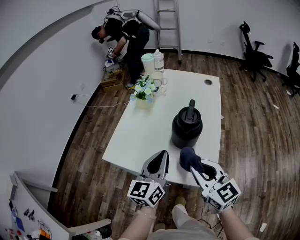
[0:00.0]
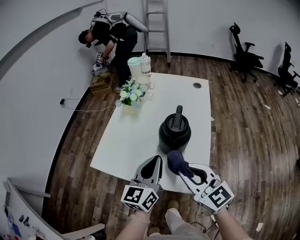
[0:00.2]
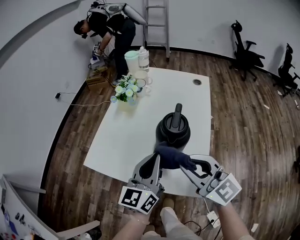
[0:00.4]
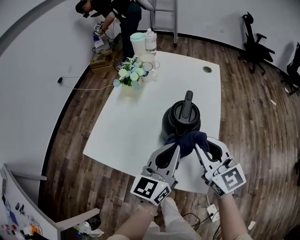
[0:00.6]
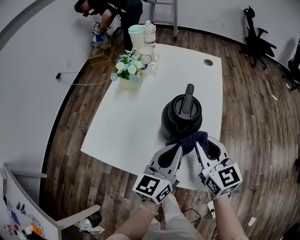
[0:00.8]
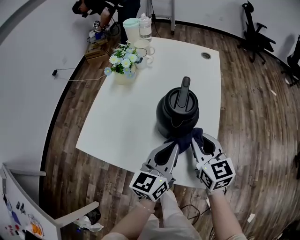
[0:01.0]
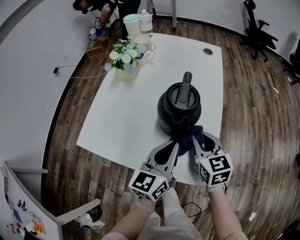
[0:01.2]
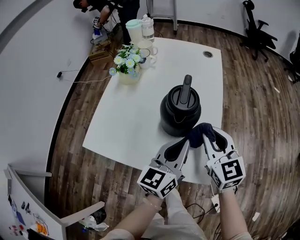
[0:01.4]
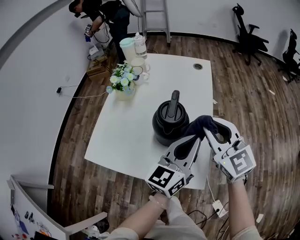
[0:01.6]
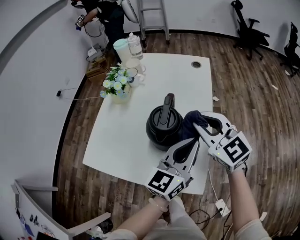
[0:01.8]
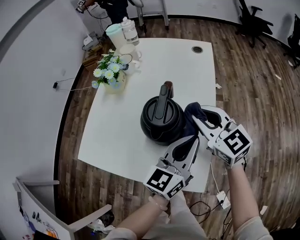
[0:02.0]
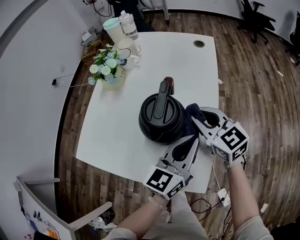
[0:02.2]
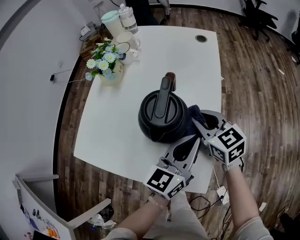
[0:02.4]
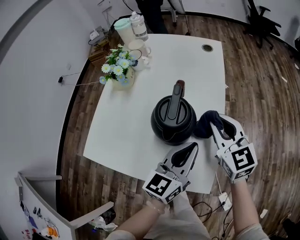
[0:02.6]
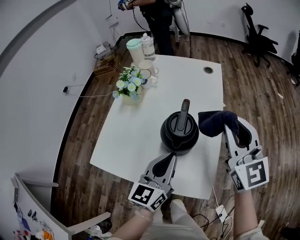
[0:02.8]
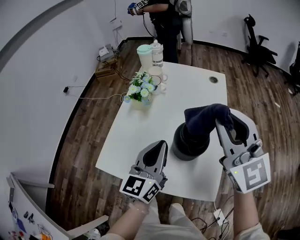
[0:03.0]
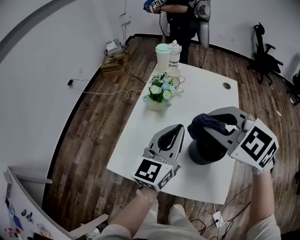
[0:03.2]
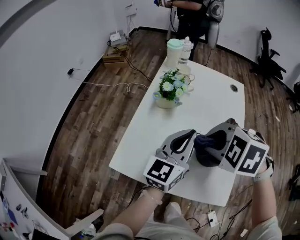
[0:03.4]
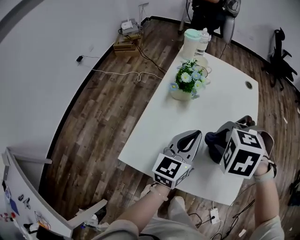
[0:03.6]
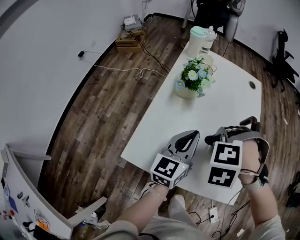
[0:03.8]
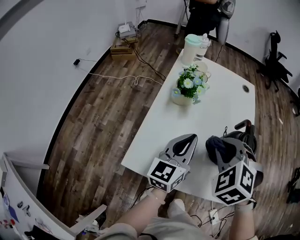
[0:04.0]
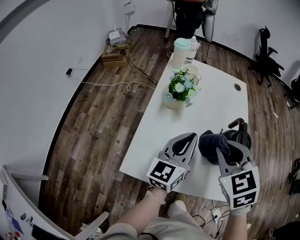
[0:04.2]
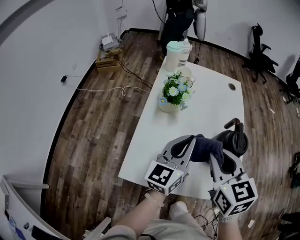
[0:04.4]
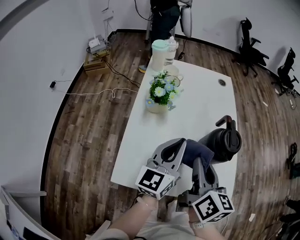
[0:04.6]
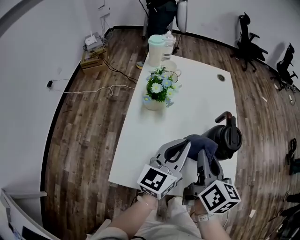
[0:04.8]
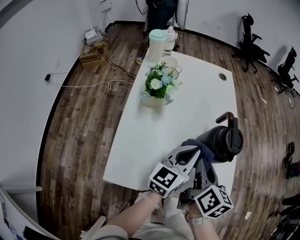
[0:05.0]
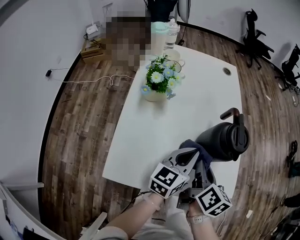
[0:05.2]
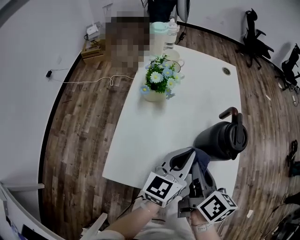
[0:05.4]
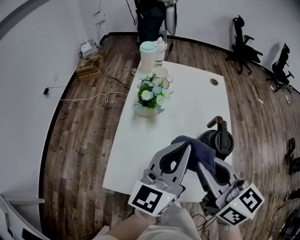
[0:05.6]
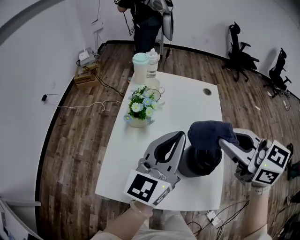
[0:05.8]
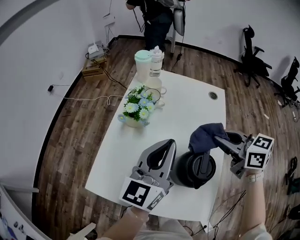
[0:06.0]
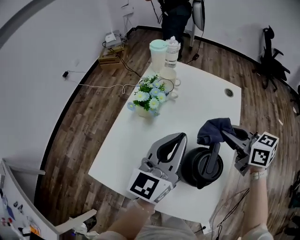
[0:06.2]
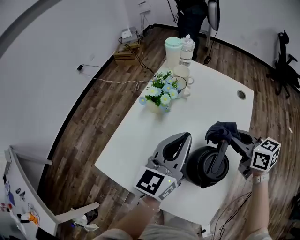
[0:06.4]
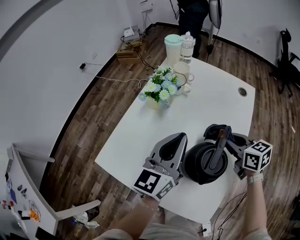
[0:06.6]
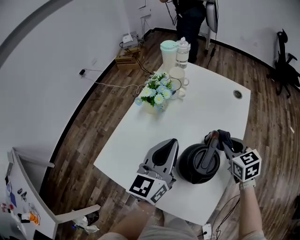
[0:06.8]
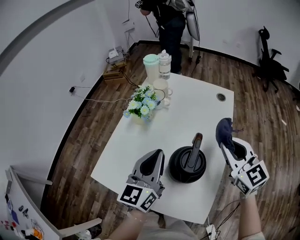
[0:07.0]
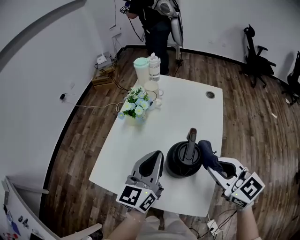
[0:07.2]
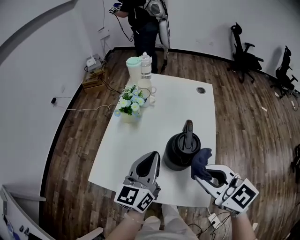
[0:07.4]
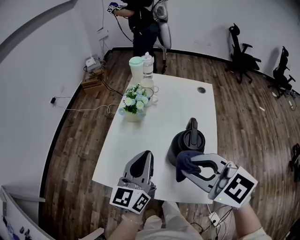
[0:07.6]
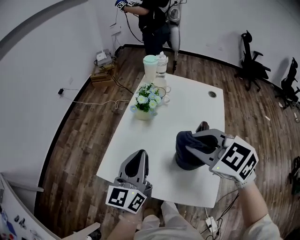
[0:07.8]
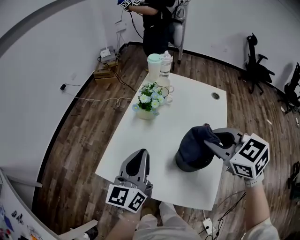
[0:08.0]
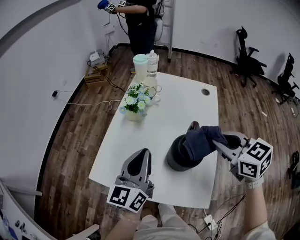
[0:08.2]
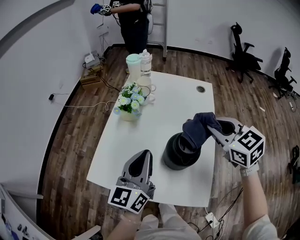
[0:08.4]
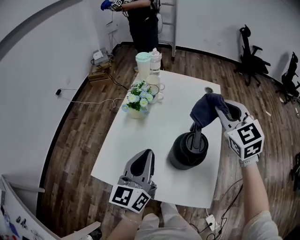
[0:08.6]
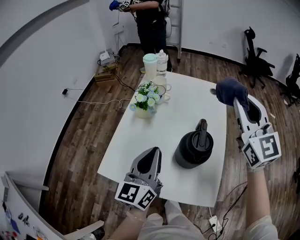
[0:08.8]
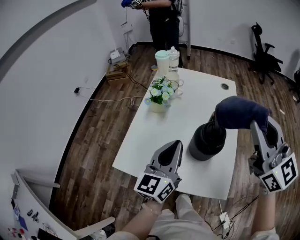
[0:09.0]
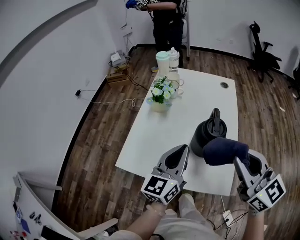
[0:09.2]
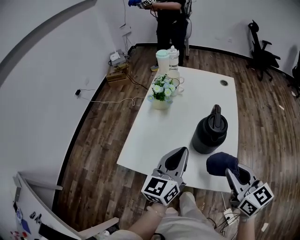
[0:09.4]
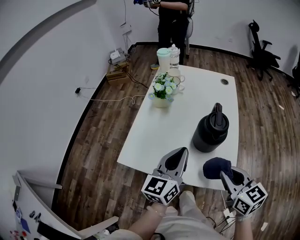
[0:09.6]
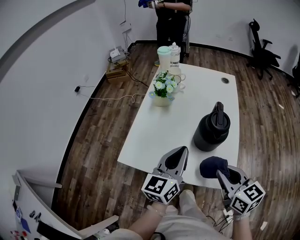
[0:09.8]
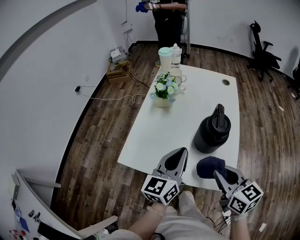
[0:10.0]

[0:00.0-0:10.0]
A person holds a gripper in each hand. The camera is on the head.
0:00.0 to 0:01.4: The left gripper travels to the right by approximately 10 cm, while the right gripper goes up and down, some 15 cm each way, reversing 2 times.
0:01.4 to 0:02.8: The left gripper travels to the left by approximately 5 cm; the right gripper moves up and down over approximately 25 cm, changing direction 2 times.
0:02.8 to 0:04.2: The left gripper swings up and down, approximately 10 cm each way, with 2 reversals; the right gripper swings up and down, roughly 20 cm each way, with 2 reversals, and points its fingers approximately 40 degrees further downward.
0:04.2 to 0:05.8: The right gripper shifts by about 15 cm, and turns by some 40 degrees. The left gripper shifts some 10 cm upward.
0:05.8 to 0:07.2: The right gripper goes about 15 cm downward, backward and to the right. The left gripper goes some 10 cm downward.
0:07.2 to 0:08.6: The right gripper goes approximately 15 cm forward and upward, and swivels about 30 degrees. Meanwhile the left gripper heads to the left, covering some 5 cm.
0:08.6 to 0:10.0: The left gripper shifts roughly 5 cm backward, while the right gripper shifts roughly 30 cm backward and downward, and turns by about 40 degrees.

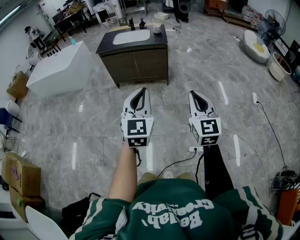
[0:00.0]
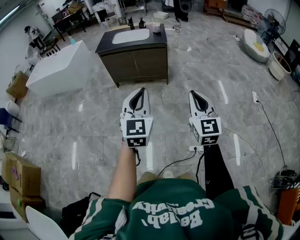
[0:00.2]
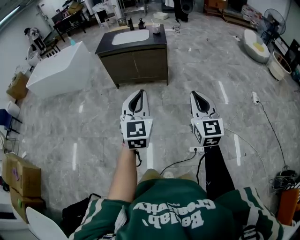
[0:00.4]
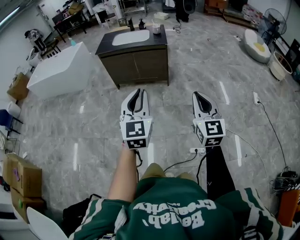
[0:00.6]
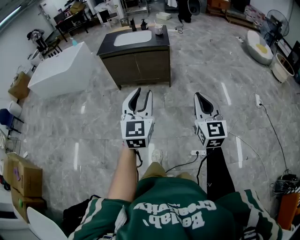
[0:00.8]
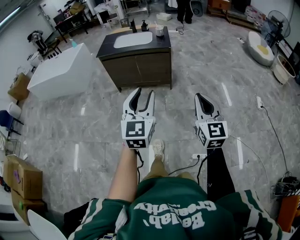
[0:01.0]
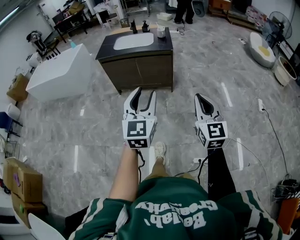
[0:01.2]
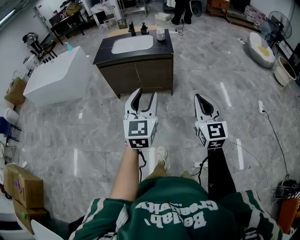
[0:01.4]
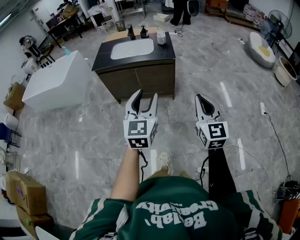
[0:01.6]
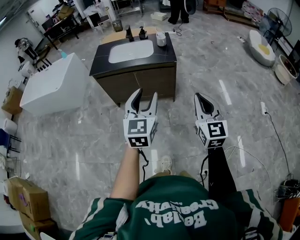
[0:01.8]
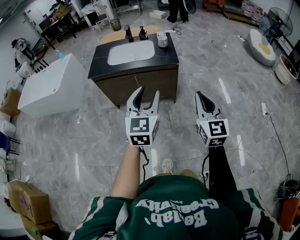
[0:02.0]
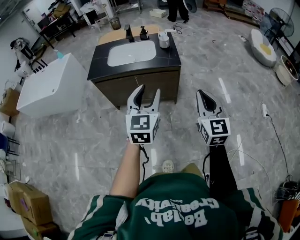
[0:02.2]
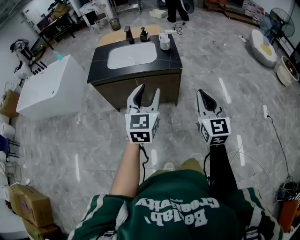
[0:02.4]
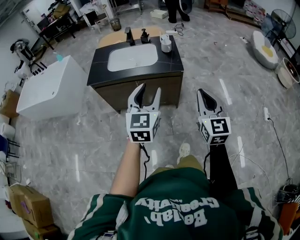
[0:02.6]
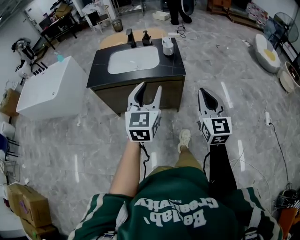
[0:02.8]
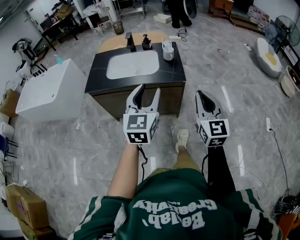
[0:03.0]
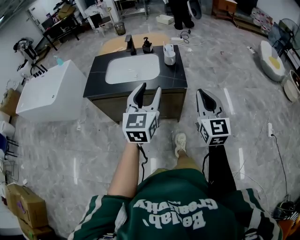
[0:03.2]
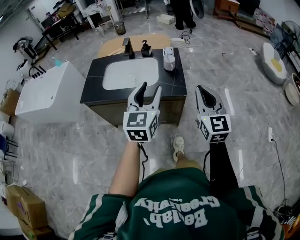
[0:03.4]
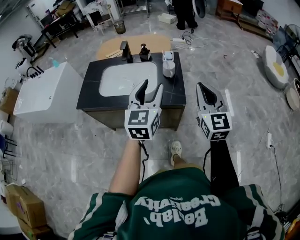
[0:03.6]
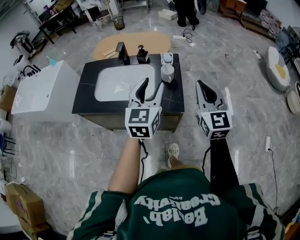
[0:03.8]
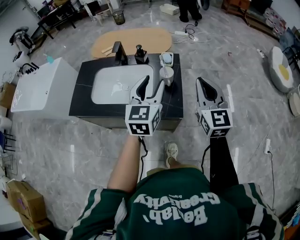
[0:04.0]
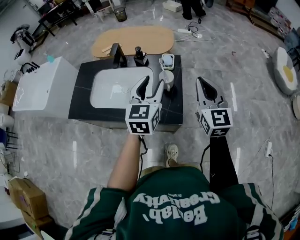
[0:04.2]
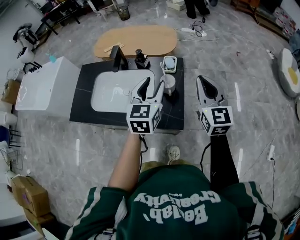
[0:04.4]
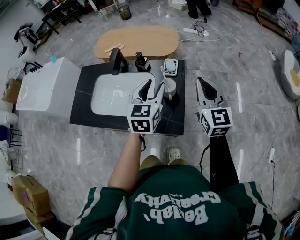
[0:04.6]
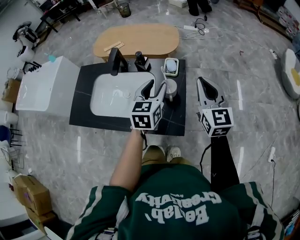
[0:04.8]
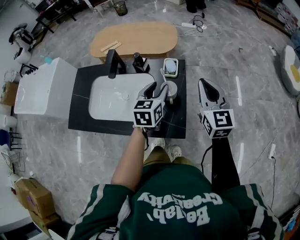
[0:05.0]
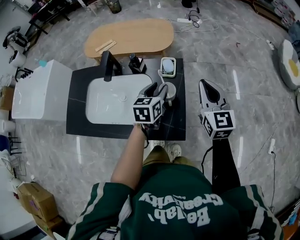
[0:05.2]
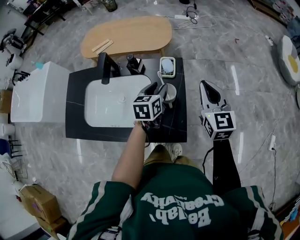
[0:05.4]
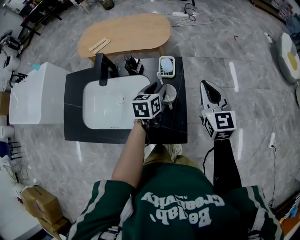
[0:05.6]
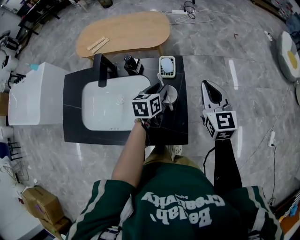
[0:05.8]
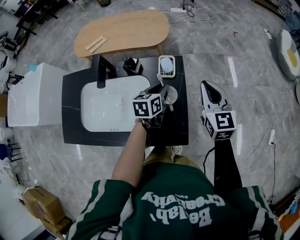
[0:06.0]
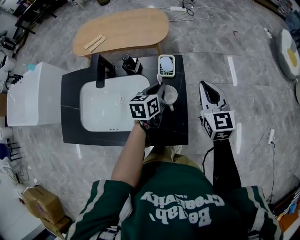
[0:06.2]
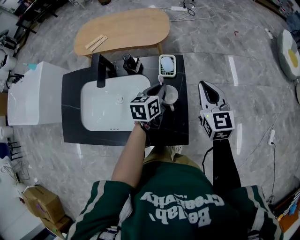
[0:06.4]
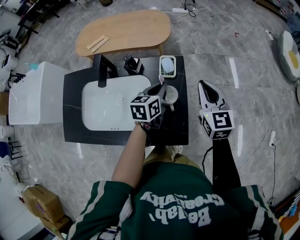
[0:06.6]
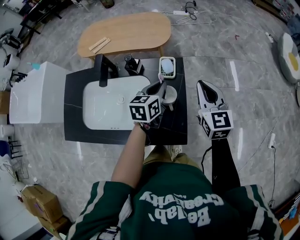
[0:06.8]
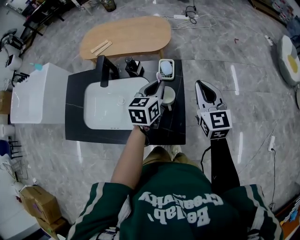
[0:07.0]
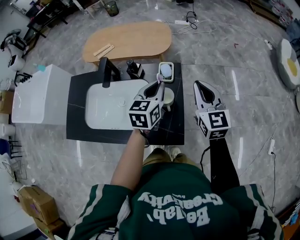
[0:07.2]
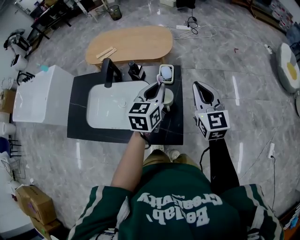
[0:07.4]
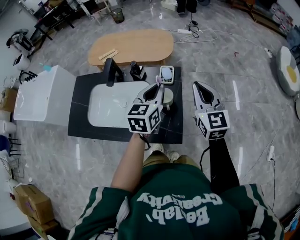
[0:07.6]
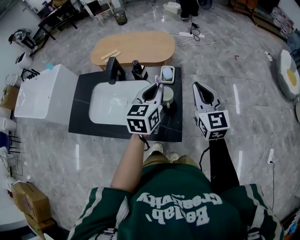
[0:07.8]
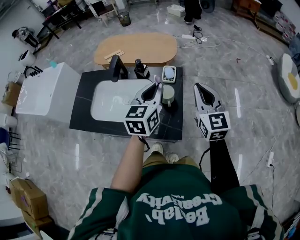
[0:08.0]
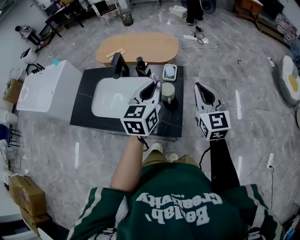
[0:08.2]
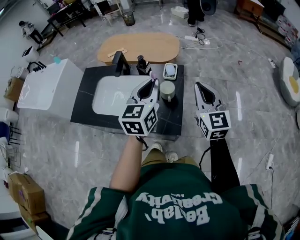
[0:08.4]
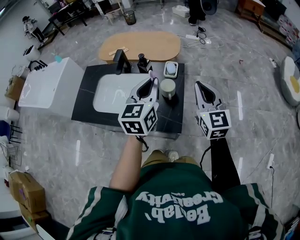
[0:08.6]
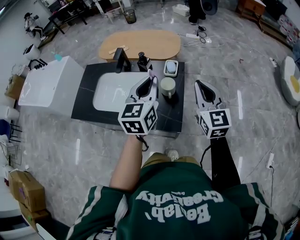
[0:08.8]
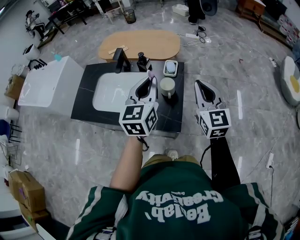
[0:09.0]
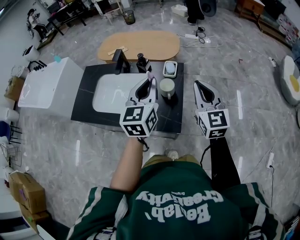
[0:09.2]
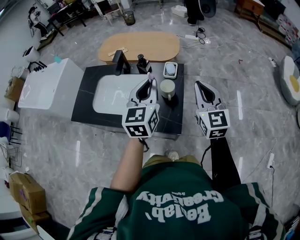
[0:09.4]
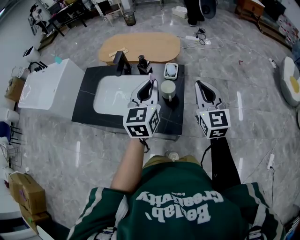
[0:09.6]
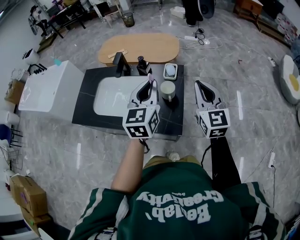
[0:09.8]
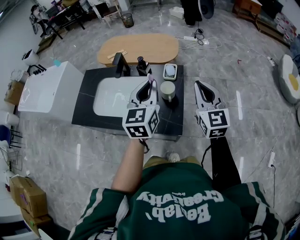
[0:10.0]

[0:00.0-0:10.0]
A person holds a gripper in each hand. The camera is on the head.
0:00.0 to 0:01.4: Both grippers move forward, about 20 cm. The left gripper opens its fingers.
0:01.4 to 0:02.8: The grippers both shift forward by about 35 cm.
0:02.8 to 0:04.2: The two grippers travel together, forward, approximately 50 cm.
0:04.2 to 0:05.8: The left gripper goes approximately 30 cm downward and forward, and turns by some 40 degrees; the right gripper is displaced forward and downward by roughly 20 cm.
0:05.8 to 0:07.2: The left gripper travels upward by about 15 cm, and closes.
0:07.2 to 0:08.6: Both grippers travel together backward and upward, approximately 15 cm.
0:08.6 to 0:10.0: The grippers make only small movements.

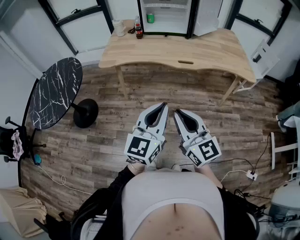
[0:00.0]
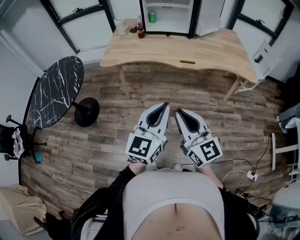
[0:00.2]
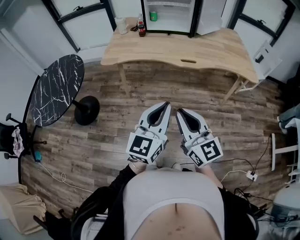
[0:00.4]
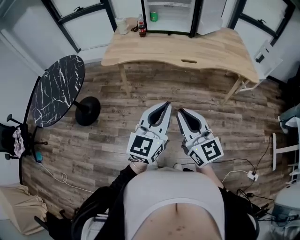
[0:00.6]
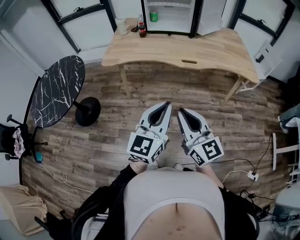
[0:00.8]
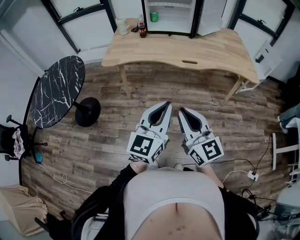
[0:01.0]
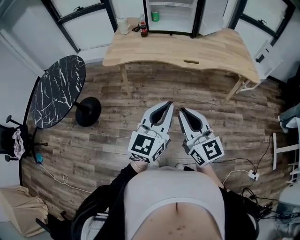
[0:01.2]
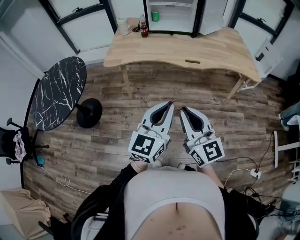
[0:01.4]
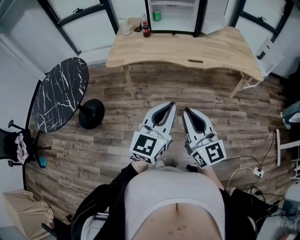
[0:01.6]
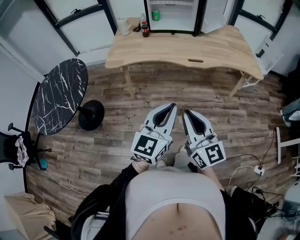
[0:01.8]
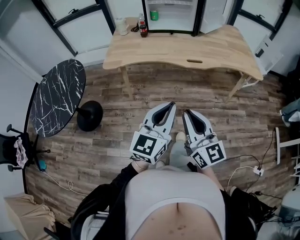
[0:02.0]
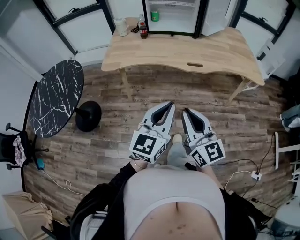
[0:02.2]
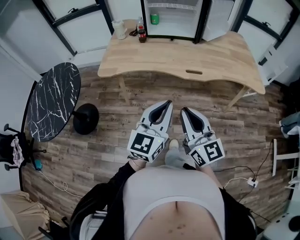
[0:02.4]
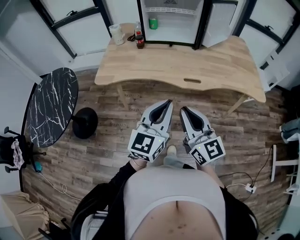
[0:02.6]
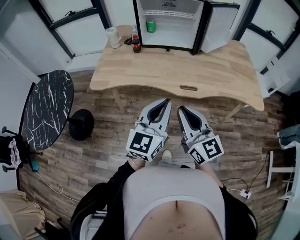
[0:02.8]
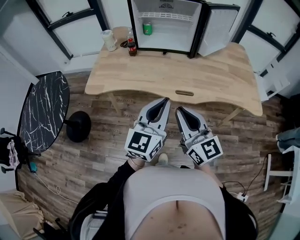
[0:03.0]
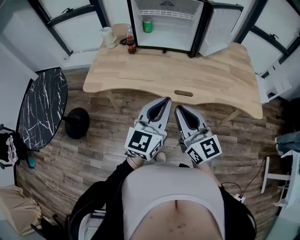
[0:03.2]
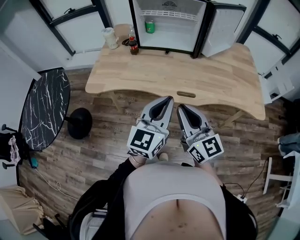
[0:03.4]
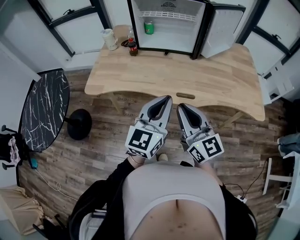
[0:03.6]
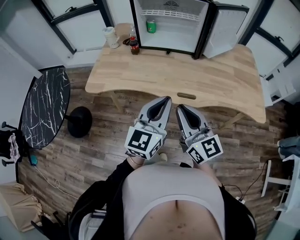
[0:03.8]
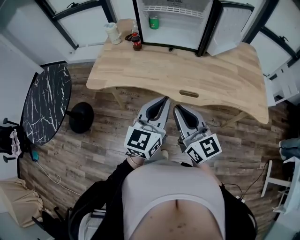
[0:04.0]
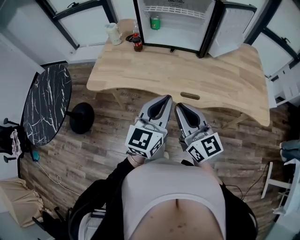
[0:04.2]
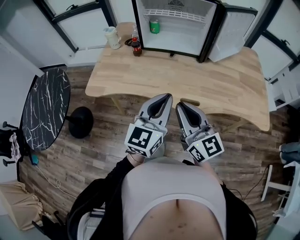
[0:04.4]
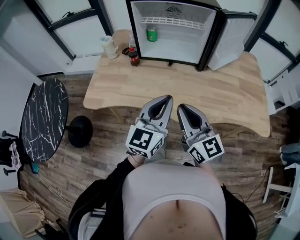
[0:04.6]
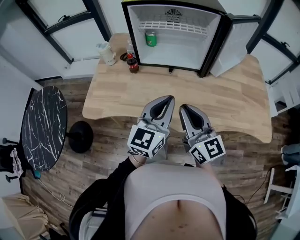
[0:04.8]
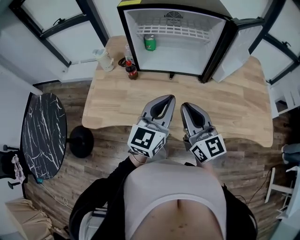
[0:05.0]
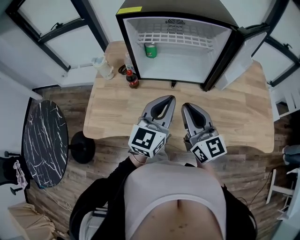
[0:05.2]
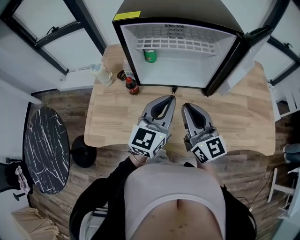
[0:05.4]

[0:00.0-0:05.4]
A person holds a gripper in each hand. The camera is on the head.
0:00.0 to 0:01.4: The grippers move only a little.
0:01.4 to 0:02.8: Both grippers travel together forward, approximately 25 cm.
0:02.8 to 0:04.0: The grippers both shift forward by some 10 cm.
0:04.0 to 0:05.4: Both grippers move forward, roughly 30 cm.
